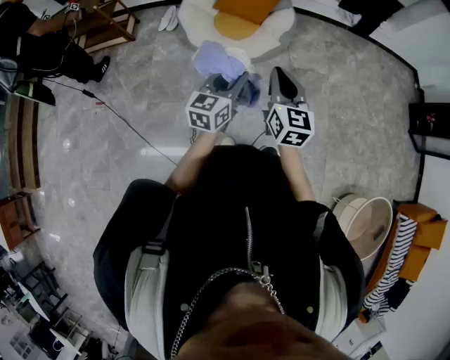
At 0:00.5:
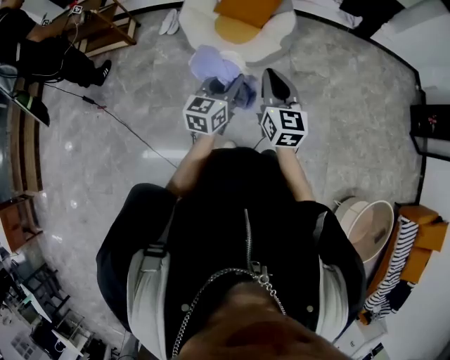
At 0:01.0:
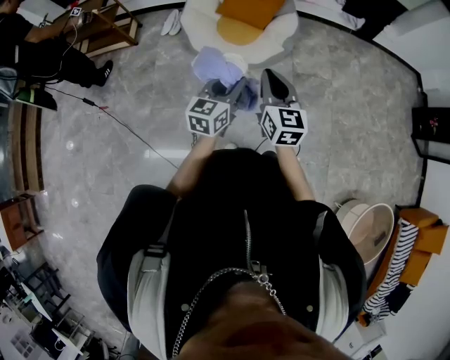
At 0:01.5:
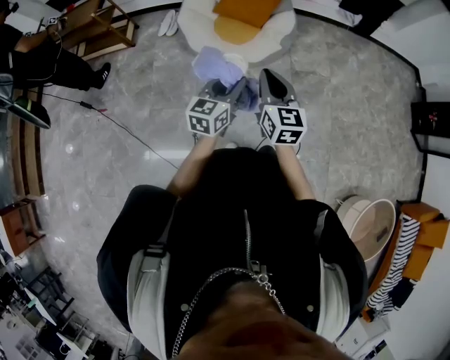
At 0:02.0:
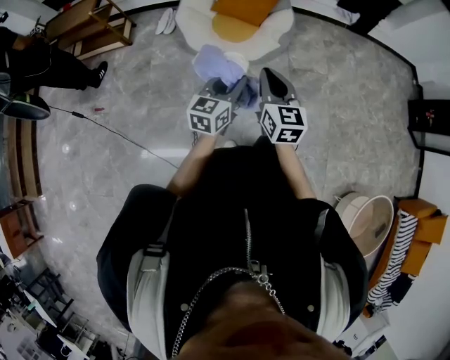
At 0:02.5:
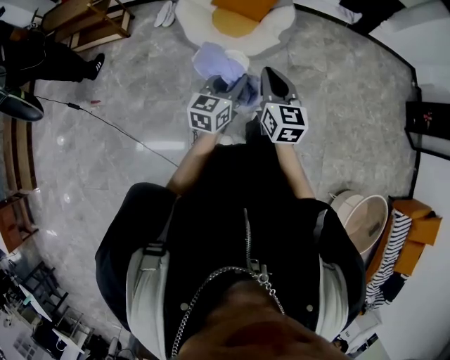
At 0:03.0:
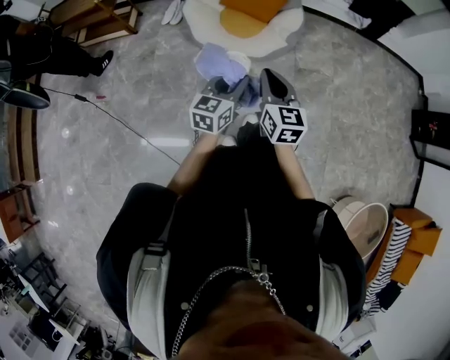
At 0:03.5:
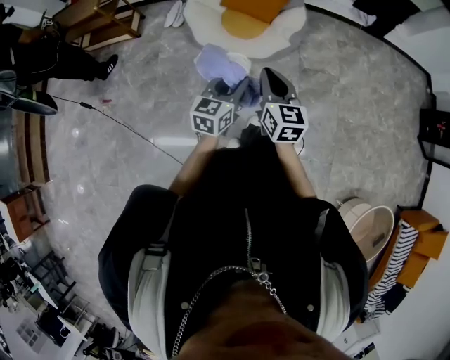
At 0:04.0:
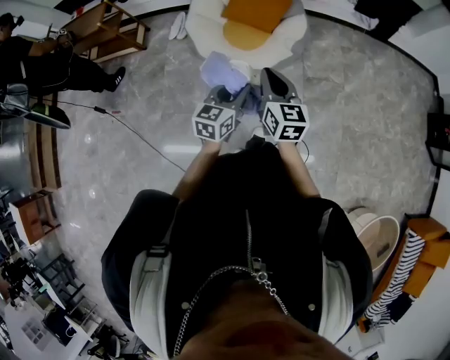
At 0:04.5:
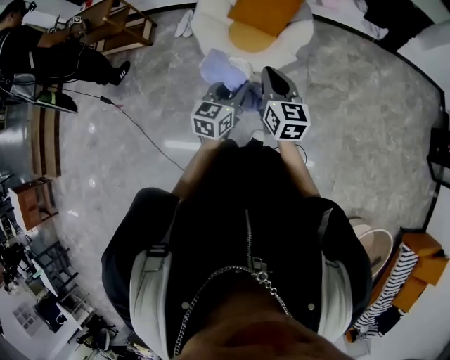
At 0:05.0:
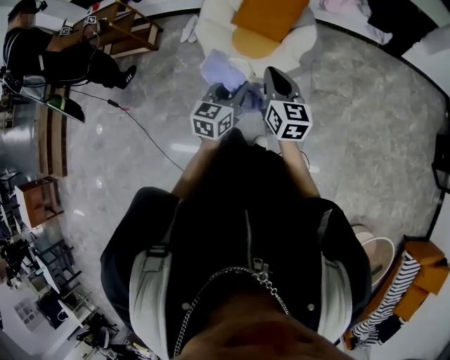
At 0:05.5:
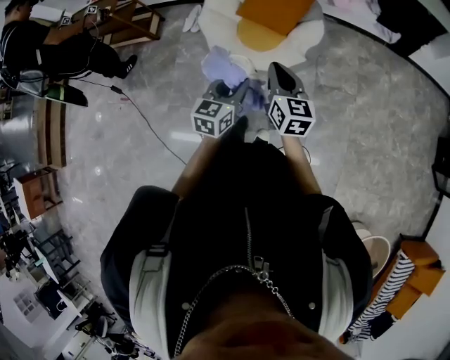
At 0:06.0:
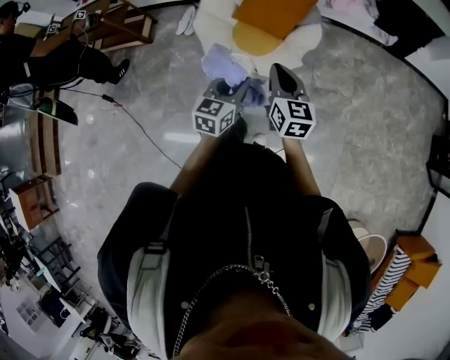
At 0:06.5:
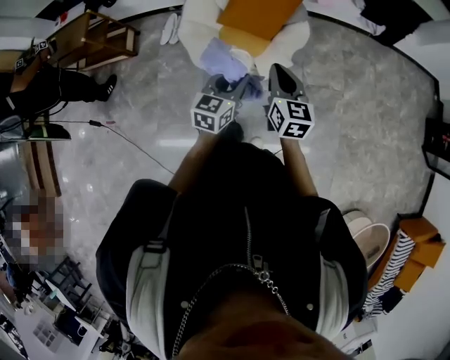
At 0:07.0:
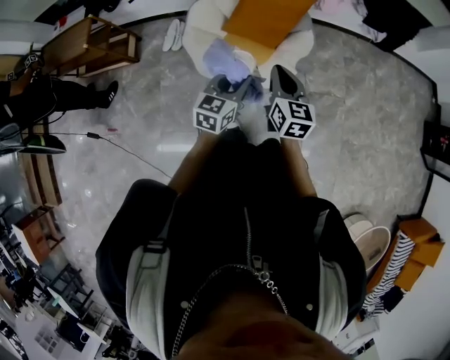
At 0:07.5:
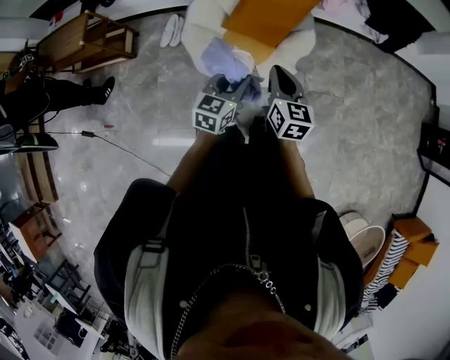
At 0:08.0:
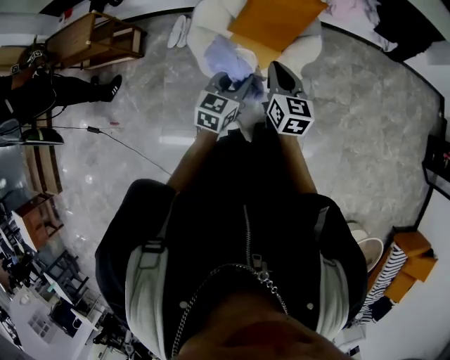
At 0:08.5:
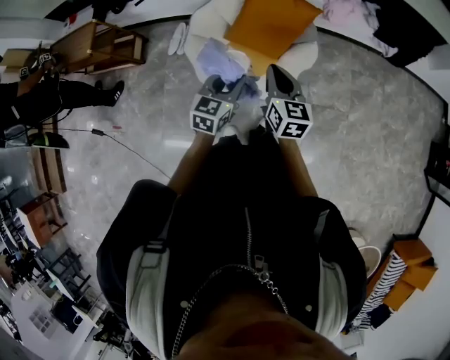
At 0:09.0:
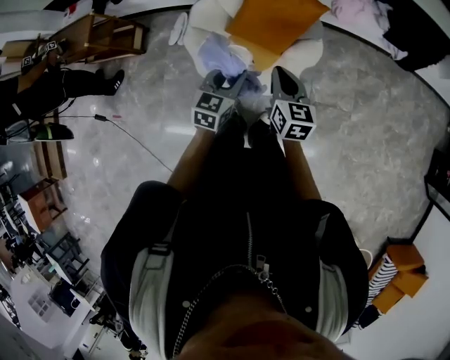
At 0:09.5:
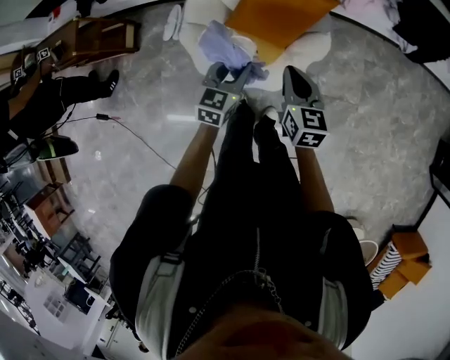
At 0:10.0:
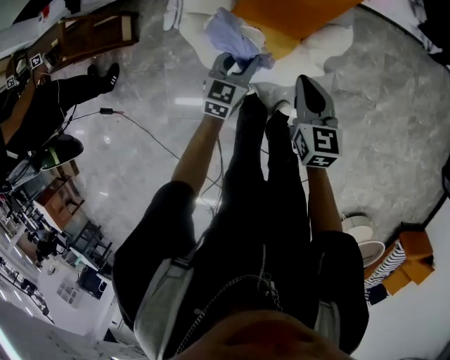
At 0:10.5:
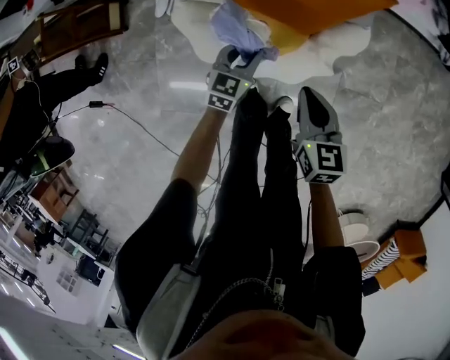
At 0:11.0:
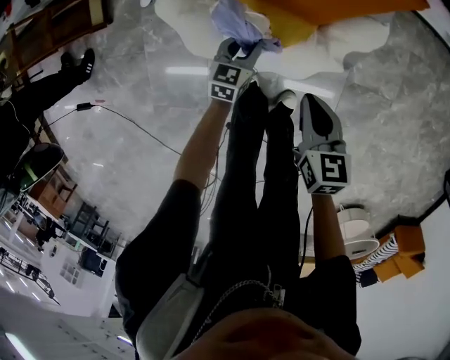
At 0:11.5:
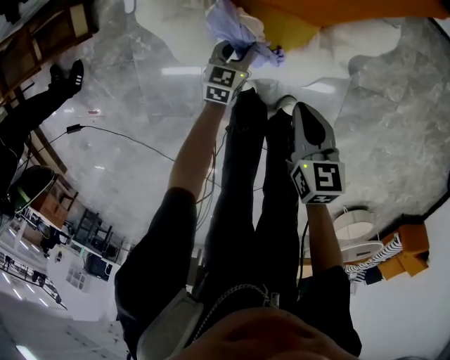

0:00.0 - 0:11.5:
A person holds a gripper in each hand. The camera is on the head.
0:00.0 - 0:02.0: The right gripper ends up approximately 5 cm from where it was.
0:02.0 - 0:04.0: The grippers both shift forward by some 10 cm.
0:04.0 - 0:06.0: The grippers both shift forward by roughly 15 cm.
0:06.0 - 0:07.5: The grippers both shift forward and to the left by approximately 15 cm.
0:07.5 - 0:09.5: The right gripper shifts about 20 cm forward and downward, while the left gripper goes roughly 20 cm forward.
0:09.5 - 0:11.5: Both grippers travel together downward, about 40 cm. The right gripper swivels roughly 20 degrees.

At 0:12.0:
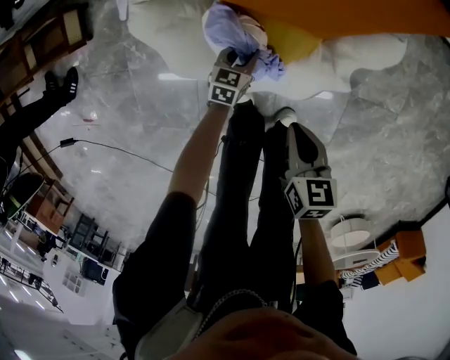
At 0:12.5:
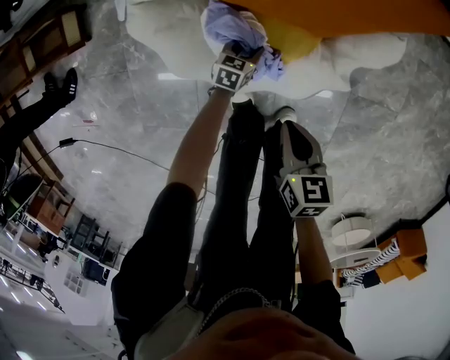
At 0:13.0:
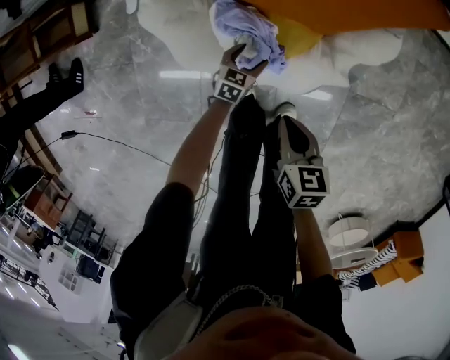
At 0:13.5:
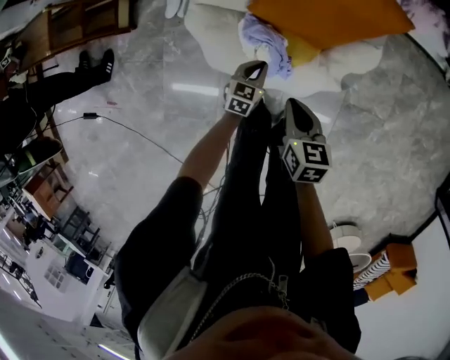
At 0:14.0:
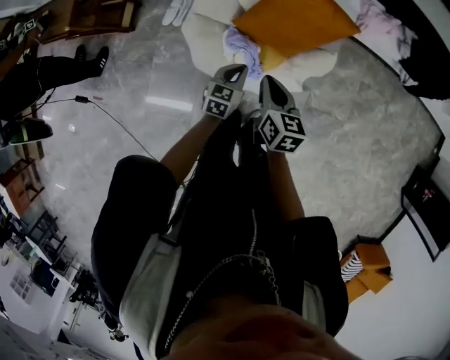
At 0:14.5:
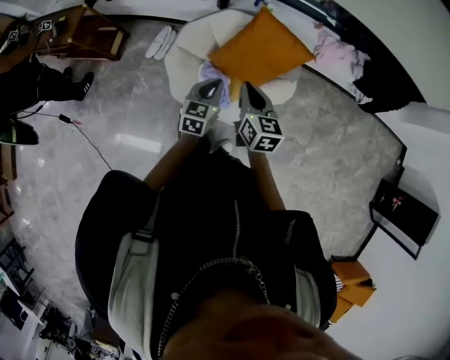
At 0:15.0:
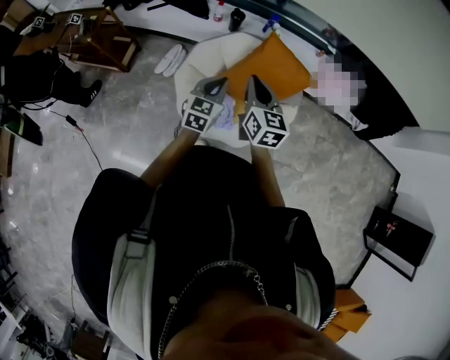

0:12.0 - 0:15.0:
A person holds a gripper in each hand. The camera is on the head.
0:12.0 - 0:13.5: The grippers both shift upward by roughly 20 cm. The left gripper closes.
0:13.5 - 0:15.0: The grippers both shift upward by roughly 35 cm. The right gripper angles its fingers upward, by approximately 30 degrees. The left gripper rotates approximately 30 degrees.

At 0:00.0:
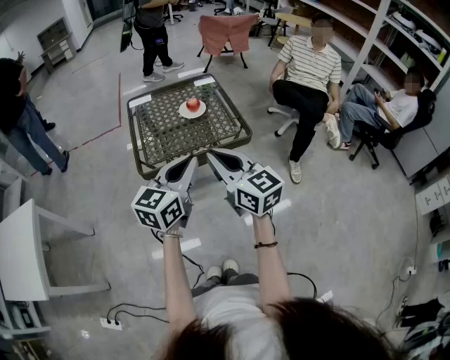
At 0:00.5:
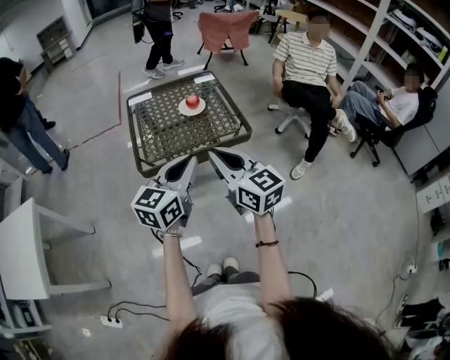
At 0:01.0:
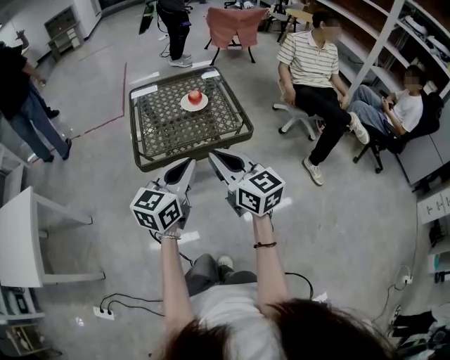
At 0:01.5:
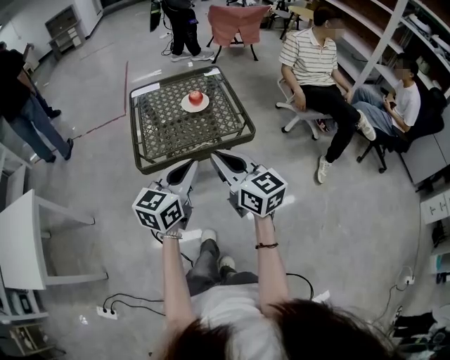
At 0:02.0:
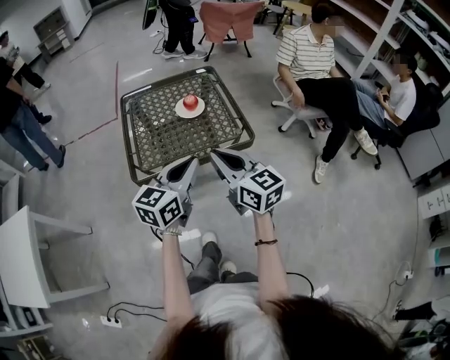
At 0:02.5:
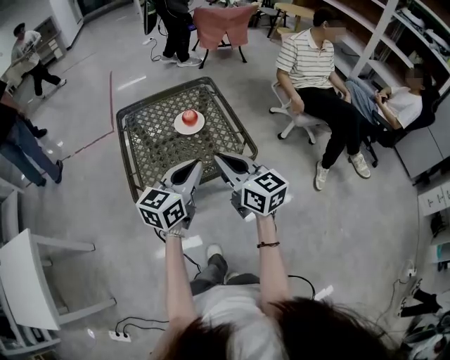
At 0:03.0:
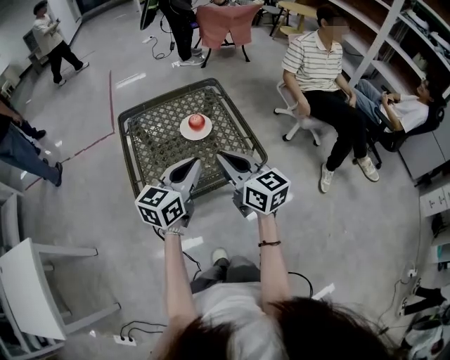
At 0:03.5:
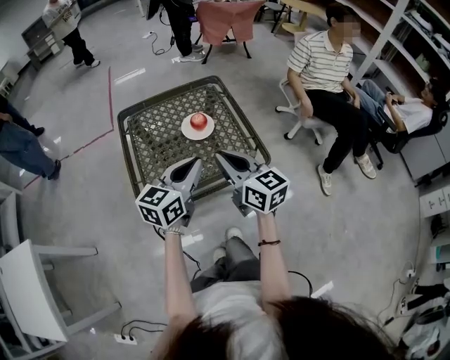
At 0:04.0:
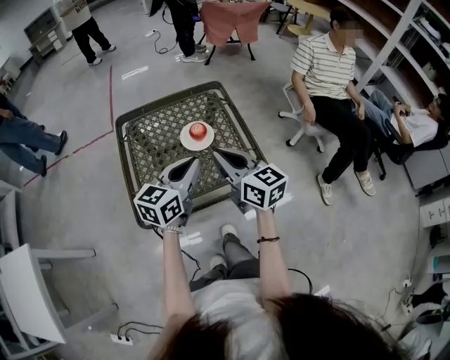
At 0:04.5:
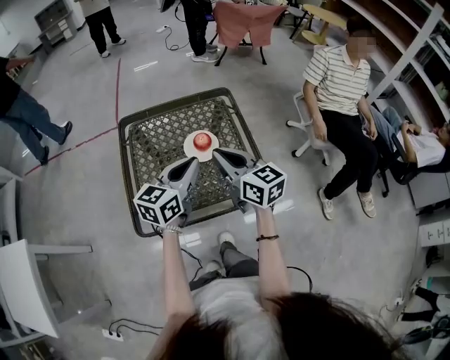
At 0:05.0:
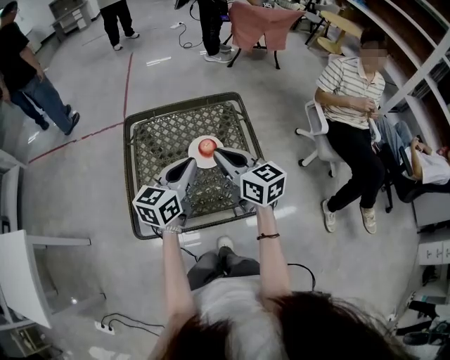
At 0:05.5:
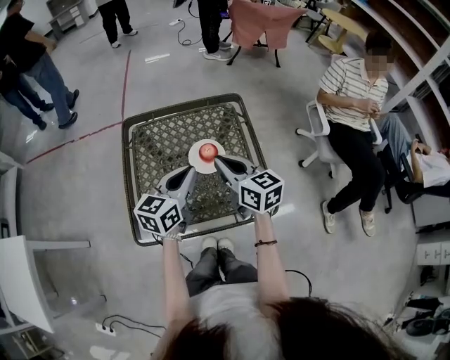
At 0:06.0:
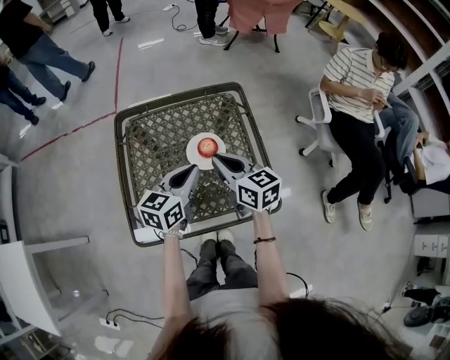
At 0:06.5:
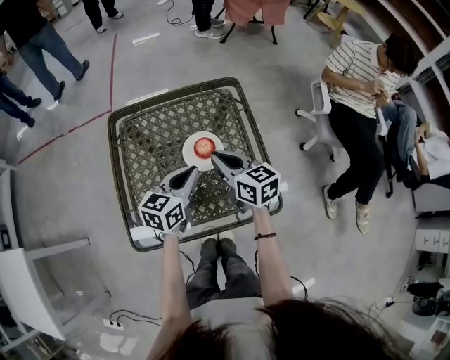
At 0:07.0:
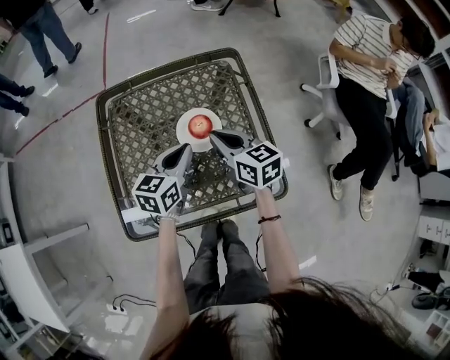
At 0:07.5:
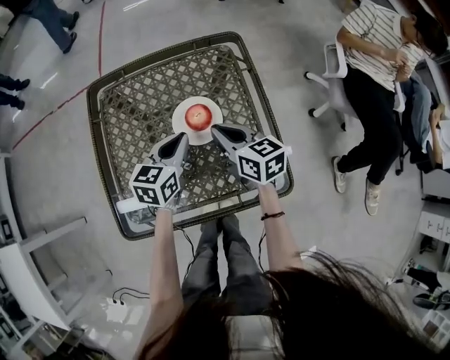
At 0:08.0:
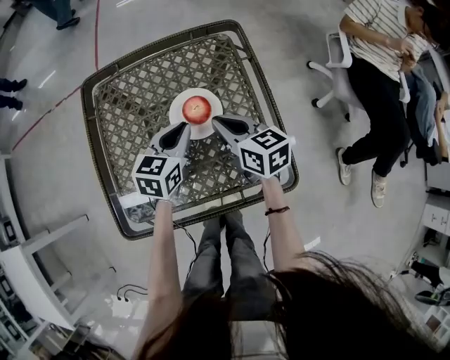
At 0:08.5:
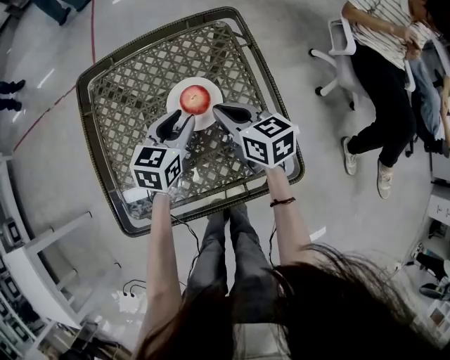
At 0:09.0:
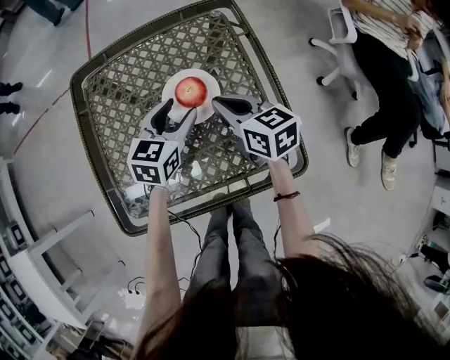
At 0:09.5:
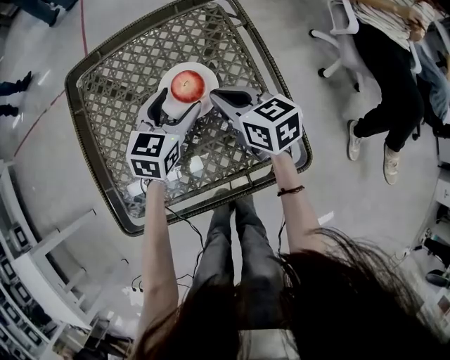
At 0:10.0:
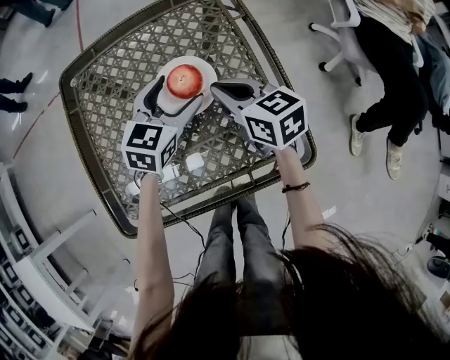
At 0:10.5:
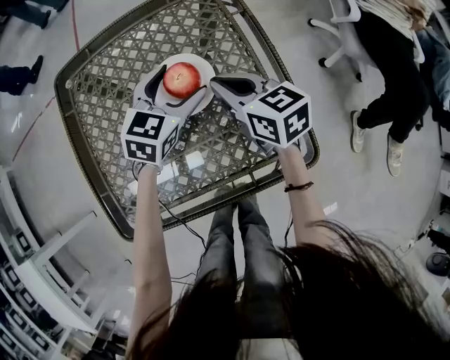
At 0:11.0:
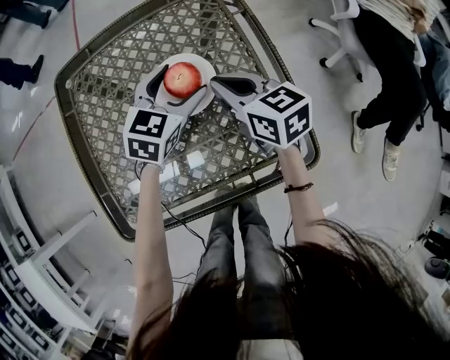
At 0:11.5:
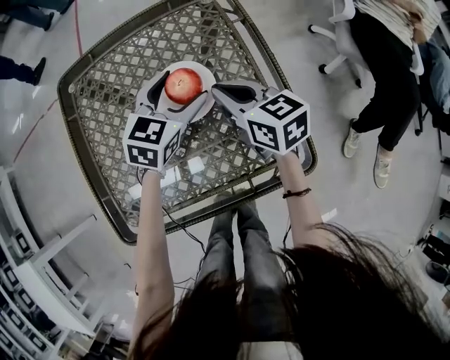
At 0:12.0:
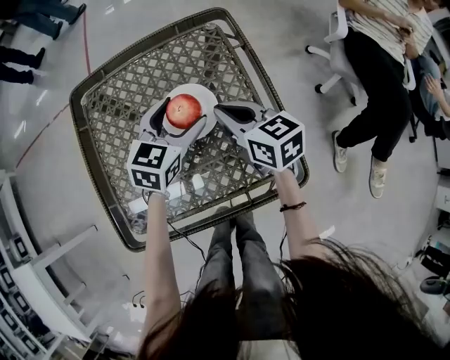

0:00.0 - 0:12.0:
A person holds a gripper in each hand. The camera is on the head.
0:00.0 - 0:02.0: Both grippers travel together forward and downward, some 10 cm.
0:02.0 - 0:04.0: The two grippers go about 20 cm forward.
0:04.0 - 0:06.0: Both grippers move forward and downward, about 15 cm.
0:06.0 - 0:08.0: The left gripper heads downward and forward, covering some 15 cm; the right gripper moves downward, roughly 15 cm.
0:08.0 - 0:10.0: The left gripper moves some 5 cm, and opens up.
0:10.0 - 0:12.0: The grippers move only a little.
